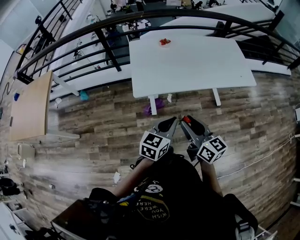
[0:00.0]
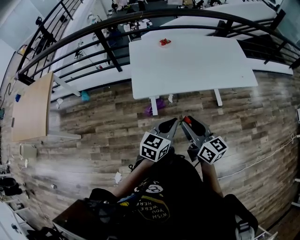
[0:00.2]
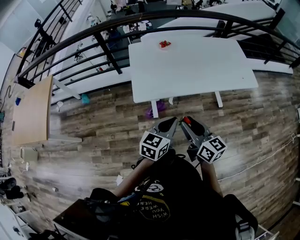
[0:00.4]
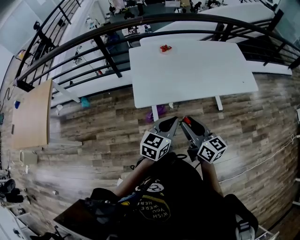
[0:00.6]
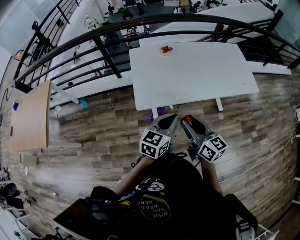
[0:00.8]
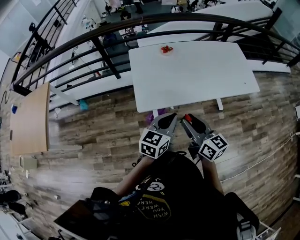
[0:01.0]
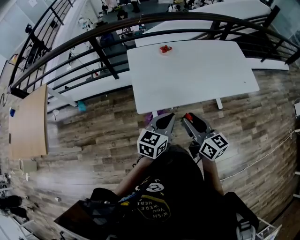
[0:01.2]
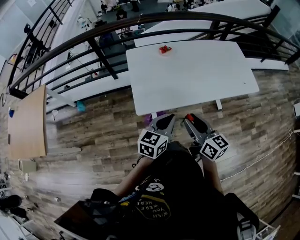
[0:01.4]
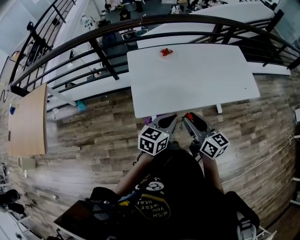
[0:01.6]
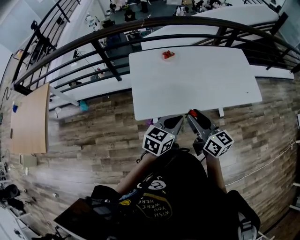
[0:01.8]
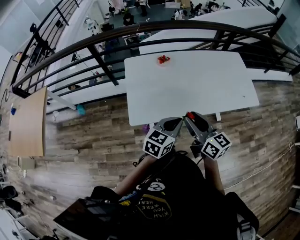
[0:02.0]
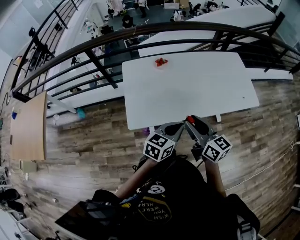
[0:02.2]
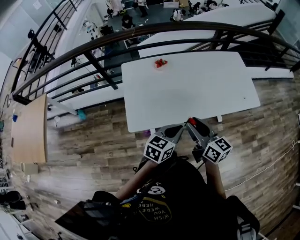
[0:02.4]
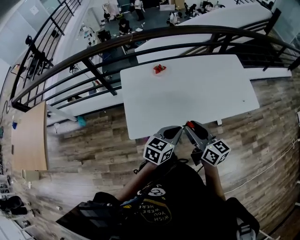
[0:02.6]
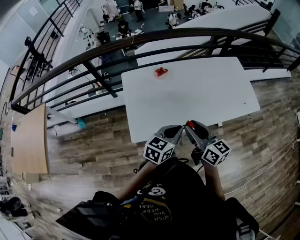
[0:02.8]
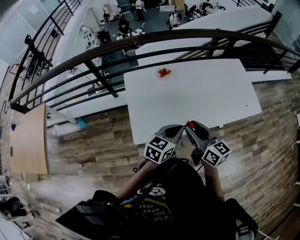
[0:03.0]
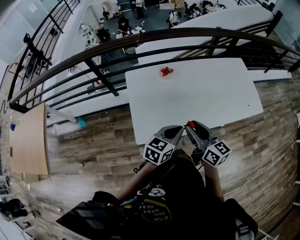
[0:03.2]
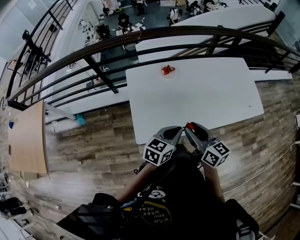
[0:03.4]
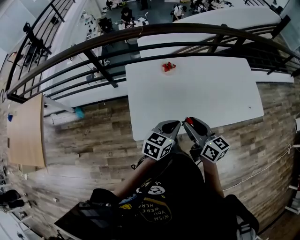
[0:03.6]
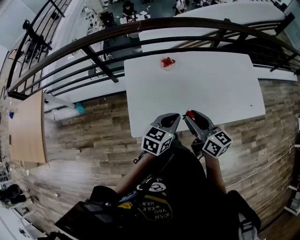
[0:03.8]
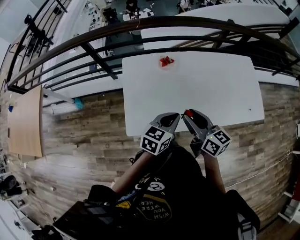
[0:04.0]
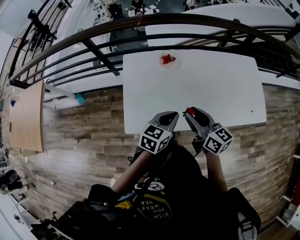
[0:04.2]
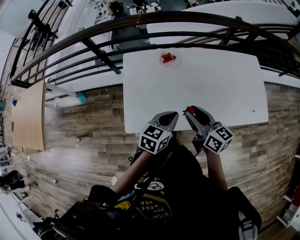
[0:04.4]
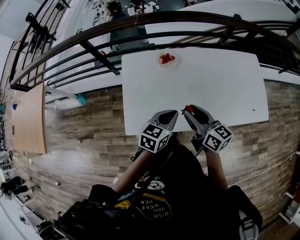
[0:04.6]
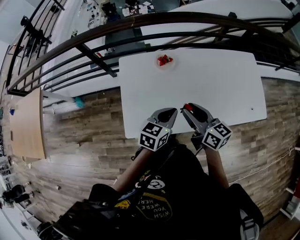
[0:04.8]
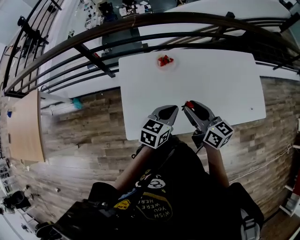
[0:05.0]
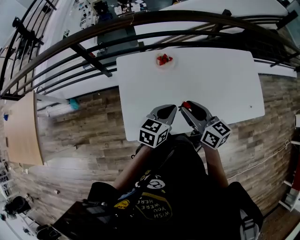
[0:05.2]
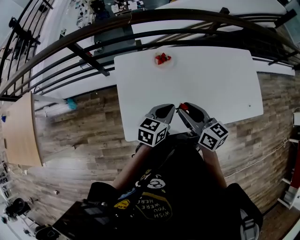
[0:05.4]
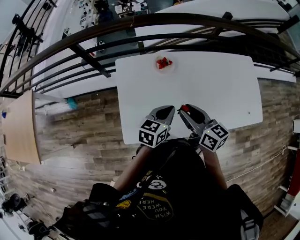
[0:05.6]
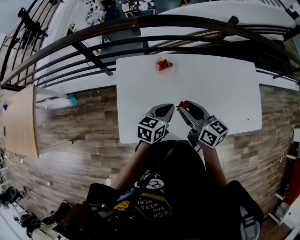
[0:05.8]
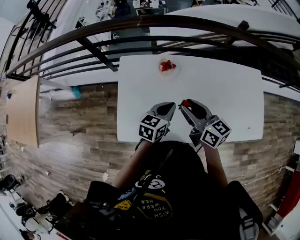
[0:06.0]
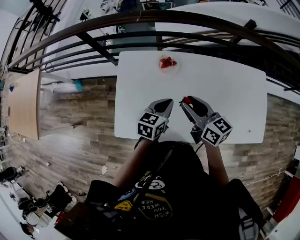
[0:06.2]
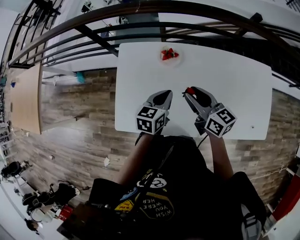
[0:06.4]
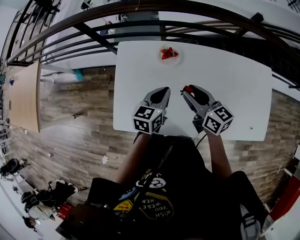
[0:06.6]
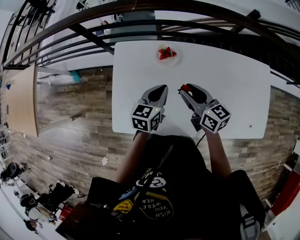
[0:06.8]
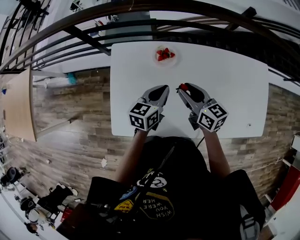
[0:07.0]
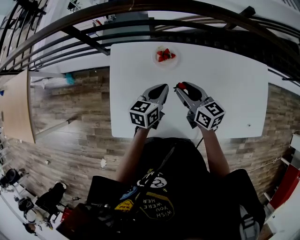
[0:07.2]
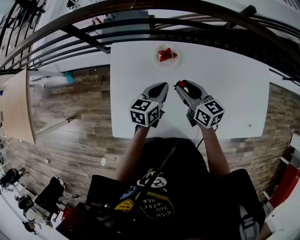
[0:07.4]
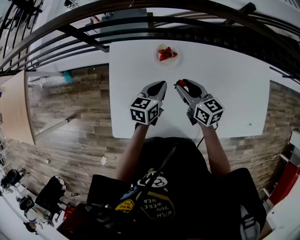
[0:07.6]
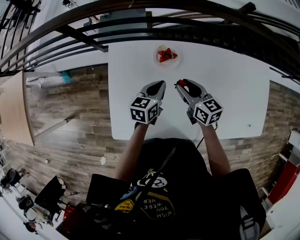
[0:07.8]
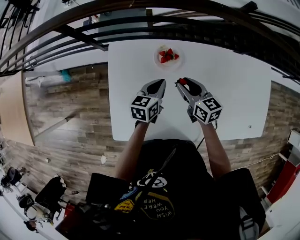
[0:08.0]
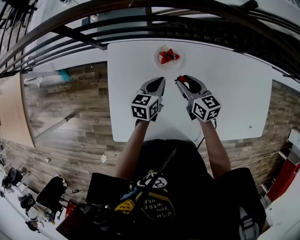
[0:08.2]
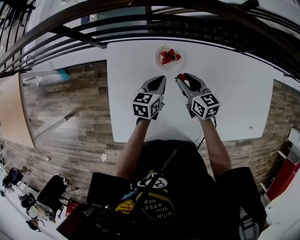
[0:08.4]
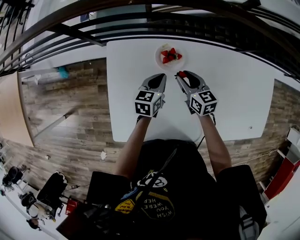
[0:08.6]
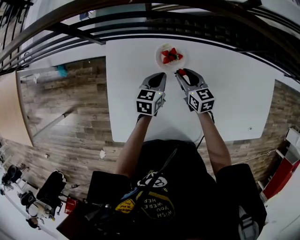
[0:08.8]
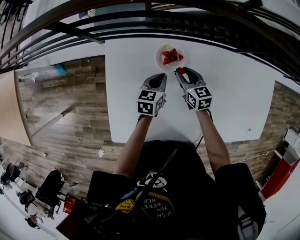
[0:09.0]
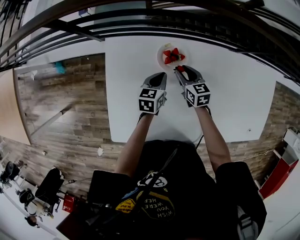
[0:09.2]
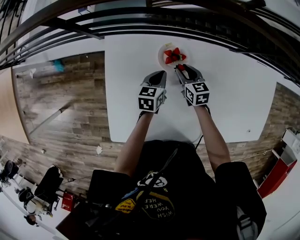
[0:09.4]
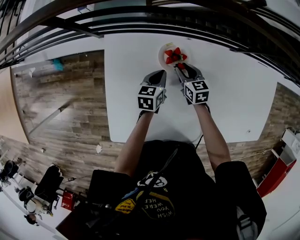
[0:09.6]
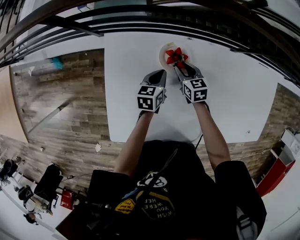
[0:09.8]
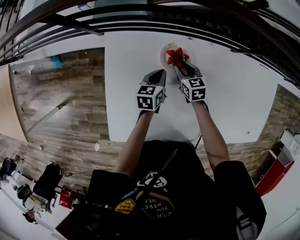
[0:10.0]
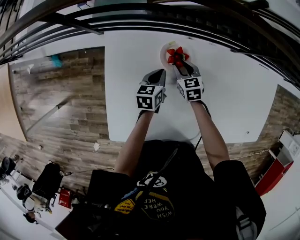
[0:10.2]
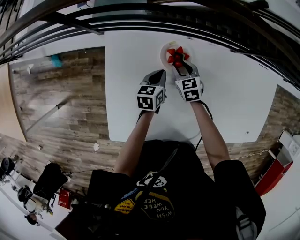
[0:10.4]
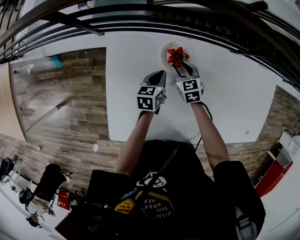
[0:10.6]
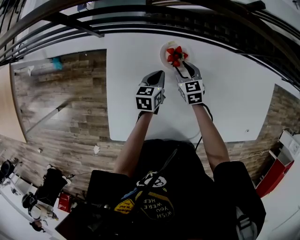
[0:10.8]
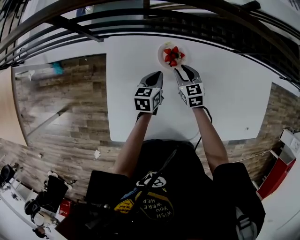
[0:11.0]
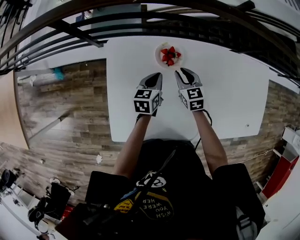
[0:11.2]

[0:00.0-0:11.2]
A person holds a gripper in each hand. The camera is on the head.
0.0 to 1.6 s: The two grippers go approximately 20 cm forward.
1.6 to 3.2 s: The grippers both shift forward by about 15 cm.
3.2 to 4.8 s: Both grippers move forward, approximately 15 cm.
4.8 to 6.4 s: The left gripper goes about 15 cm forward and downward, and turns by about 20 degrees. Meanwhile the right gripper goes about 15 cm forward.
6.4 to 8.0 s: The left gripper heads forward and downward, covering some 15 cm; the right gripper goes approximately 15 cm downward and forward.
8.0 to 9.6 s: The two grippers go about 15 cm downward and forward.
9.6 to 11.2 s: The right gripper goes approximately 5 cm upward; the left gripper ends up some 5 cm from where it was.

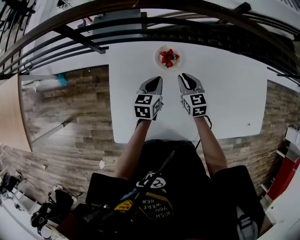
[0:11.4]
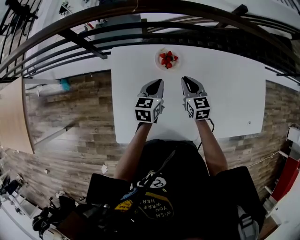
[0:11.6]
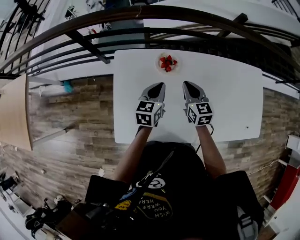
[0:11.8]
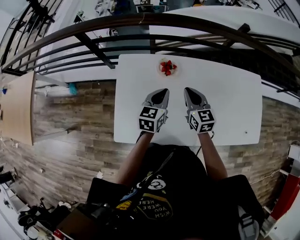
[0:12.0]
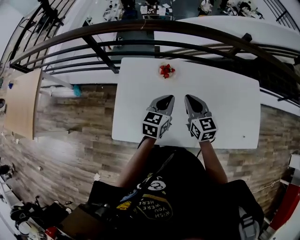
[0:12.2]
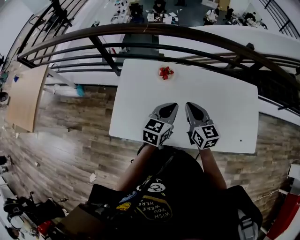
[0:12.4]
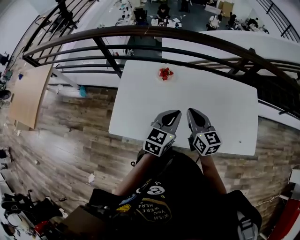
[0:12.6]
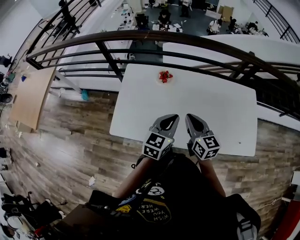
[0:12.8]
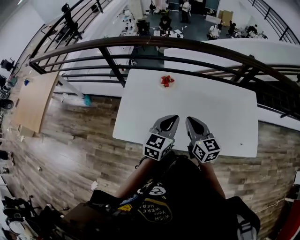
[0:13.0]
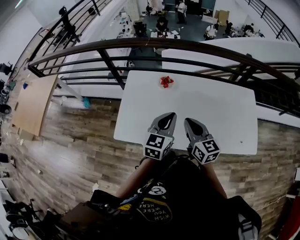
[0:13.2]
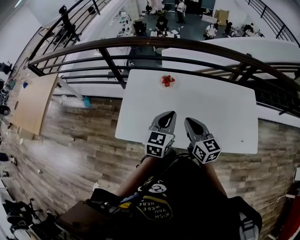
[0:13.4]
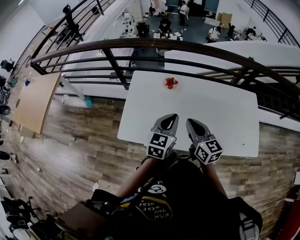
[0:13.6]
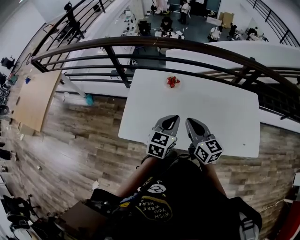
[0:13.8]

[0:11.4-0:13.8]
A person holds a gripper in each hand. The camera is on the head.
11.4 to 12.6 s: The grippers both shift backward, upward and to the right by some 40 cm. The right gripper turns by roughly 30 degrees; the left gripper changes its angle by some 20 degrees.
12.6 to 13.8 s: The left gripper moves some 5 cm. Meanwhile the right gripper heads to the left, covering roughly 5 cm.

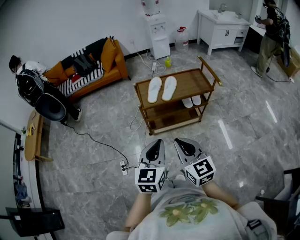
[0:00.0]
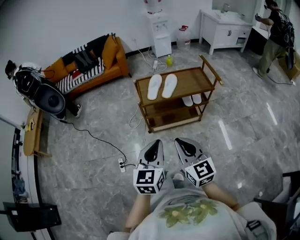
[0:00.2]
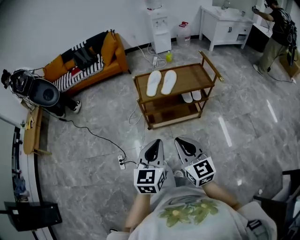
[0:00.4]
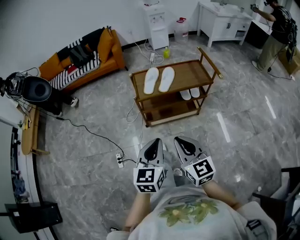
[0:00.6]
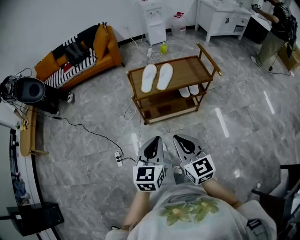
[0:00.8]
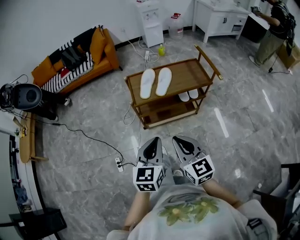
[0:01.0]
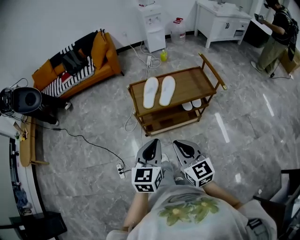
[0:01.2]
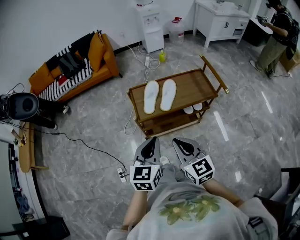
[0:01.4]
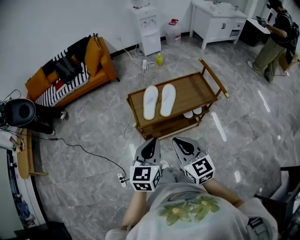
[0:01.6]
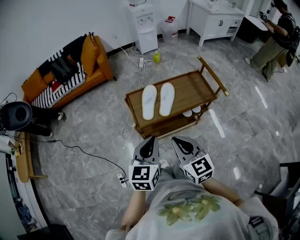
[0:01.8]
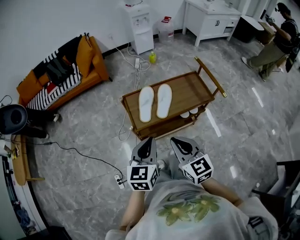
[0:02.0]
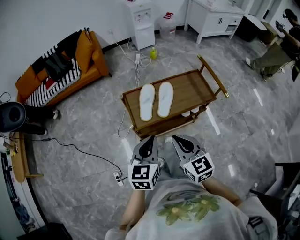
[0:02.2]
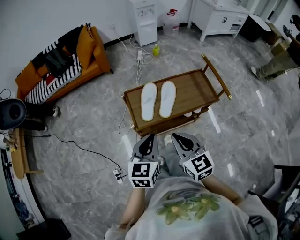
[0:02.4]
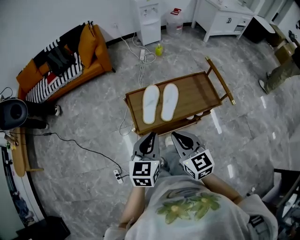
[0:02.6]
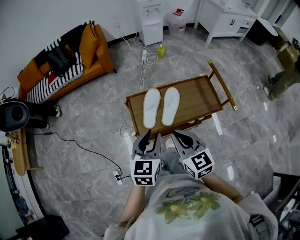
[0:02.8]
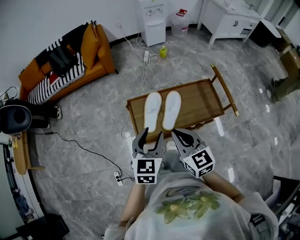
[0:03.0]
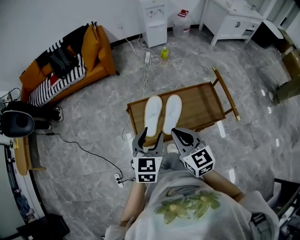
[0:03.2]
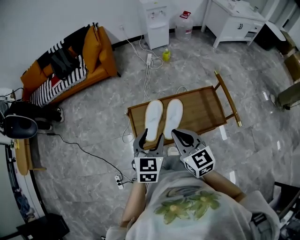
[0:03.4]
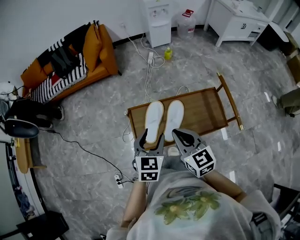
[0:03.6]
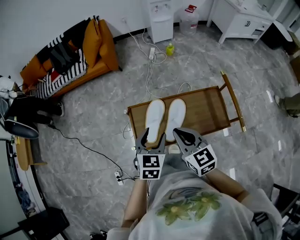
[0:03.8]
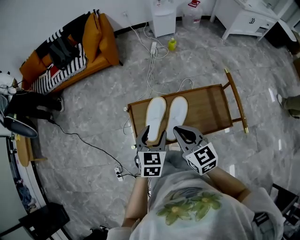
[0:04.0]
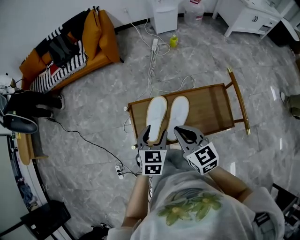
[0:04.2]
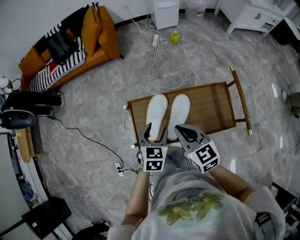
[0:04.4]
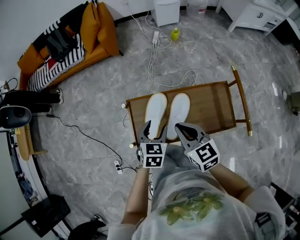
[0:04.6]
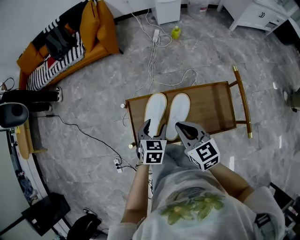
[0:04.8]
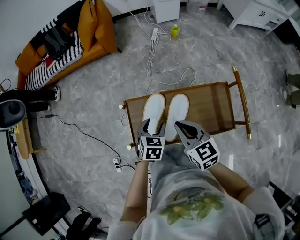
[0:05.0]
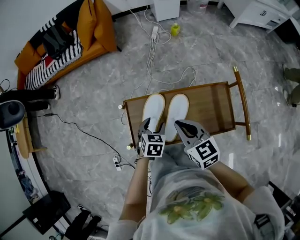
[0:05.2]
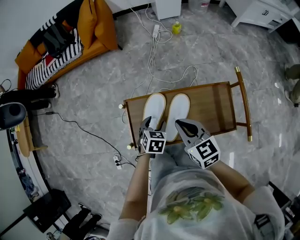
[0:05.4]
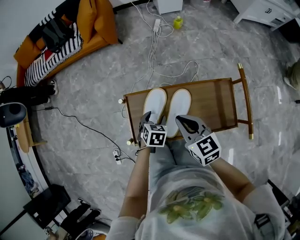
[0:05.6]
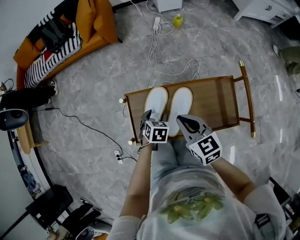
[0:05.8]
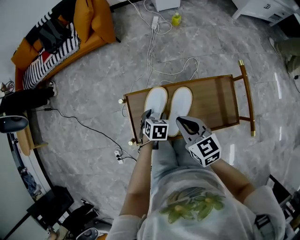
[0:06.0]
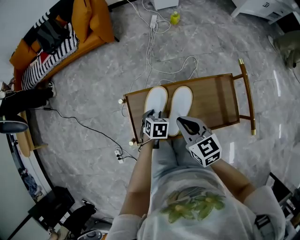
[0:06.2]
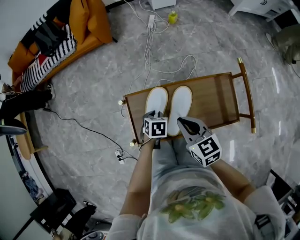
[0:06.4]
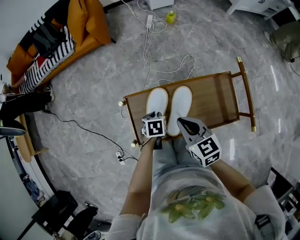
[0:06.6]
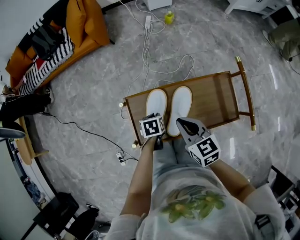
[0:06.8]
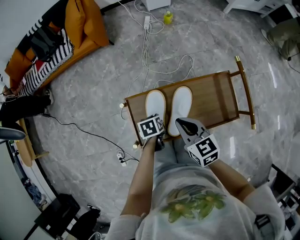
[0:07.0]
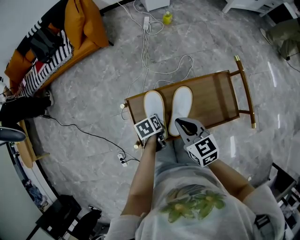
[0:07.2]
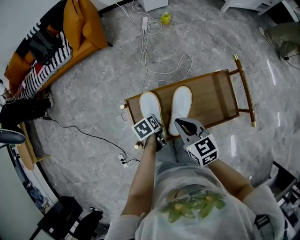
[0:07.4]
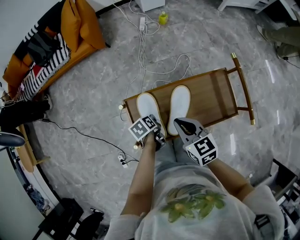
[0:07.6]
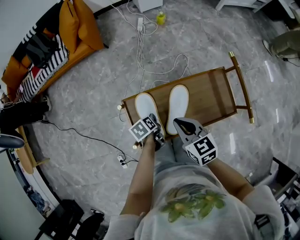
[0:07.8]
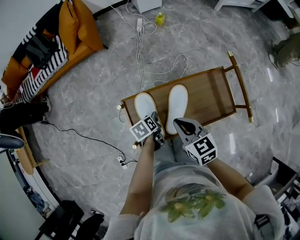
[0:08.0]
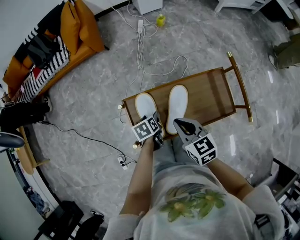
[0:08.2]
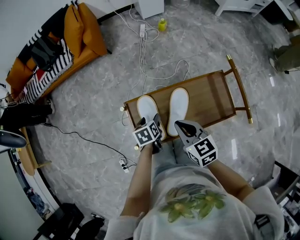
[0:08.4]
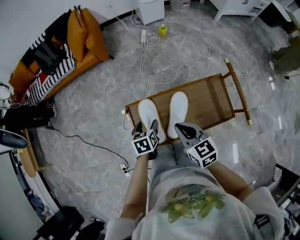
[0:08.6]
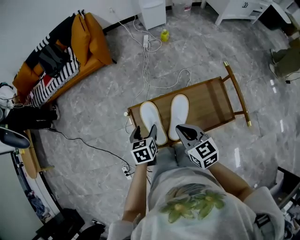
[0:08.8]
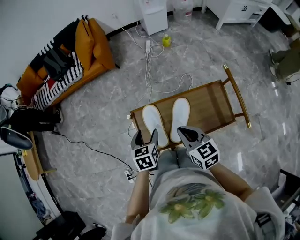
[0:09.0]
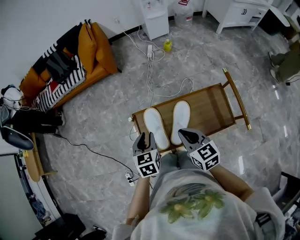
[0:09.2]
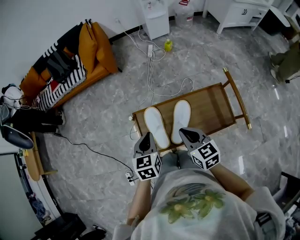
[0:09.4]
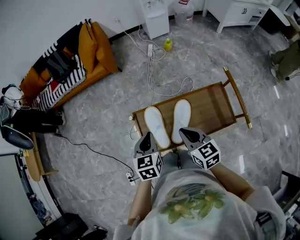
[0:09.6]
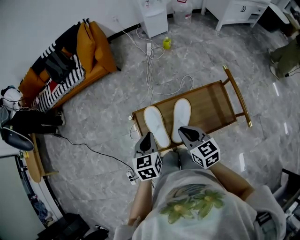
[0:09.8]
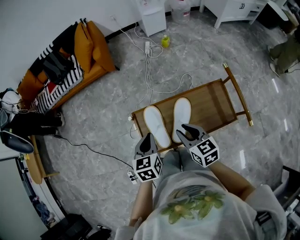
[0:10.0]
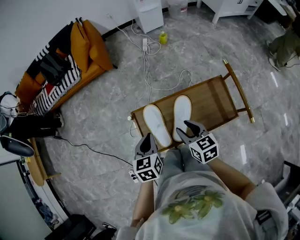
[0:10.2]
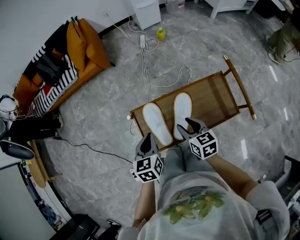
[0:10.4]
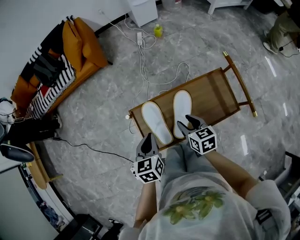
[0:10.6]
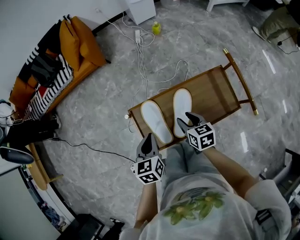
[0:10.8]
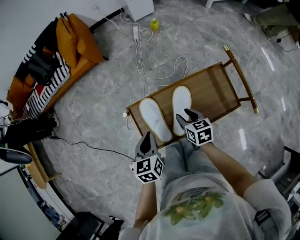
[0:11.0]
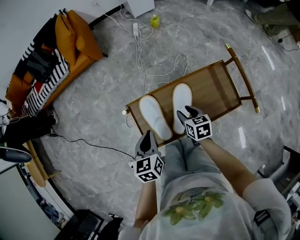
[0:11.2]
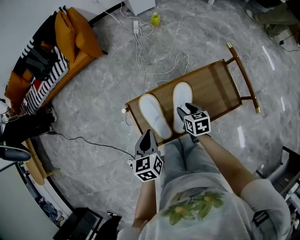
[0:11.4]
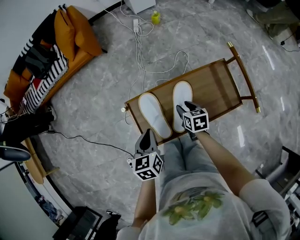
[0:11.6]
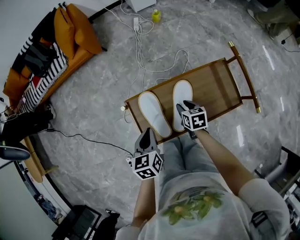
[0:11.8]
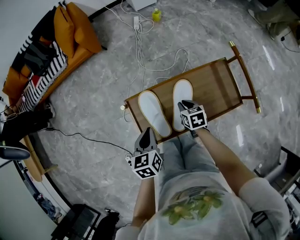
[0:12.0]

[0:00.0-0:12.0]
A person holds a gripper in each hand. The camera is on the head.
0.0 to 1.6 s: The grippers both shift forward by about 20 cm.
1.6 to 3.0 s: Both grippers move forward, about 15 cm. The left gripper opens its fingers.
3.0 to 4.4 s: The right gripper is displaced forward and downward by some 15 cm; the left gripper moves downward and forward, some 20 cm.
4.4 to 6.0 s: The left gripper is displaced downward by roughly 15 cm, and swivels about 20 degrees. The right gripper shifts by about 5 cm.
6.0 to 7.6 s: The left gripper moves to the left, roughly 5 cm, rolls counterclockwise, seen from behind, by some 50 degrees, and closes.
7.6 to 9.0 s: The left gripper shifts some 15 cm upward, swivels about 40 degrees, and opens.
9.0 to 10.4 s: The right gripper heads downward, covering about 5 cm, and opens; the left gripper closes up.
10.4 to 12.0 s: The right gripper travels downward by some 15 cm, and closes up. Meanwhile the left gripper heads downward, covering roughly 5 cm.
